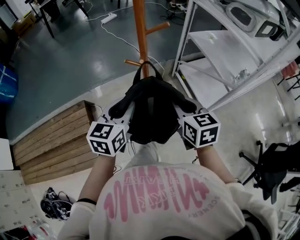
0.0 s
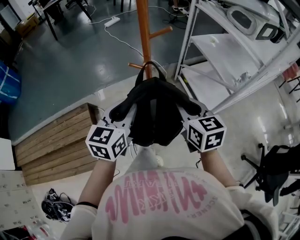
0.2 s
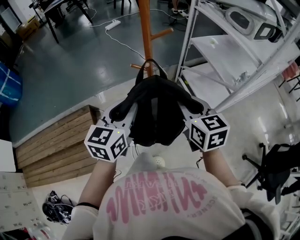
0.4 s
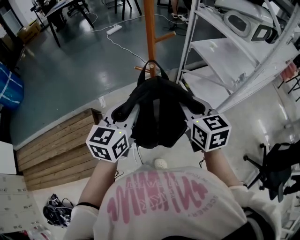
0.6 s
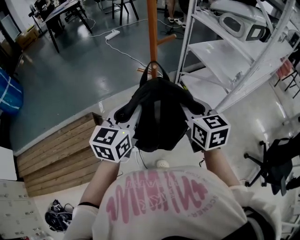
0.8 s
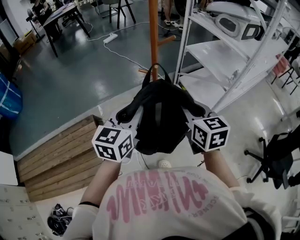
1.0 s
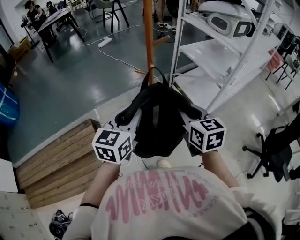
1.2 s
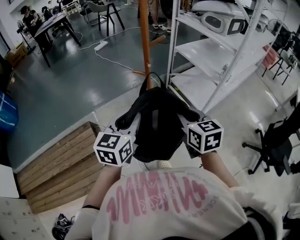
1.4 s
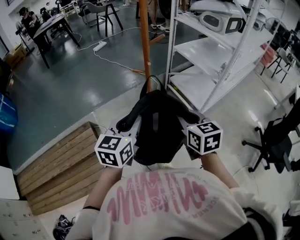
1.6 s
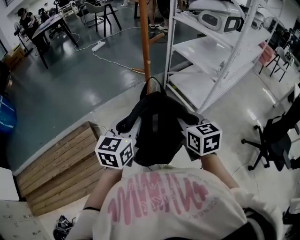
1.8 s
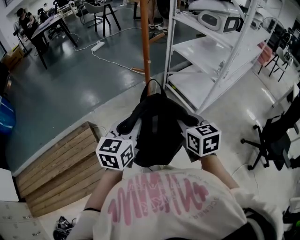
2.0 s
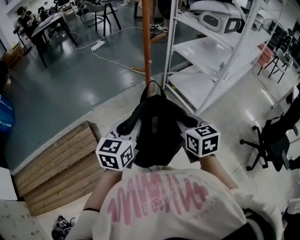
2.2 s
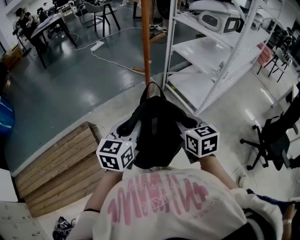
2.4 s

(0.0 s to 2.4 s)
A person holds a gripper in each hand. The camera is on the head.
0.0 s - 1.2 s: The two grippers go roughly 15 cm backward and upward.
1.2 s - 2.4 s: The two grippers go roughly 5 cm backward.

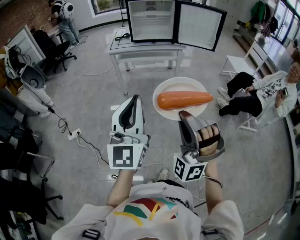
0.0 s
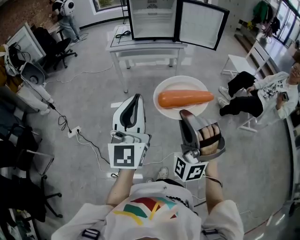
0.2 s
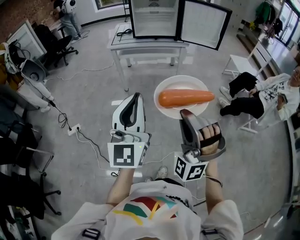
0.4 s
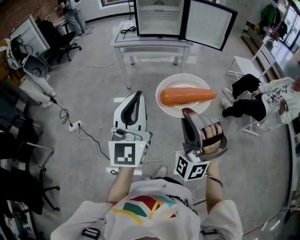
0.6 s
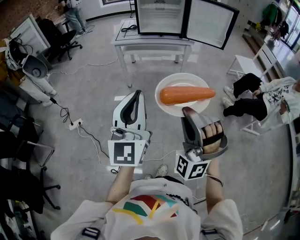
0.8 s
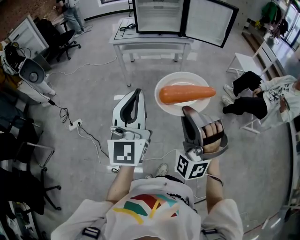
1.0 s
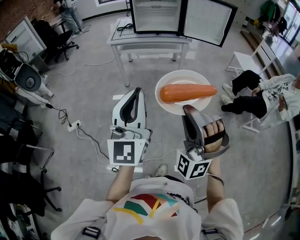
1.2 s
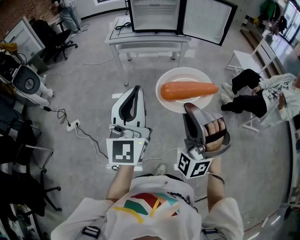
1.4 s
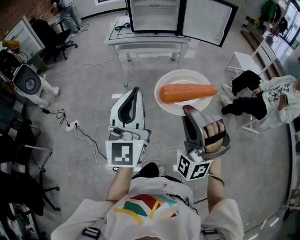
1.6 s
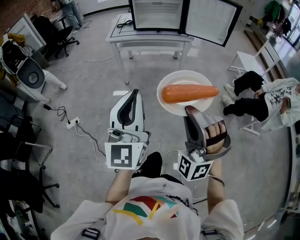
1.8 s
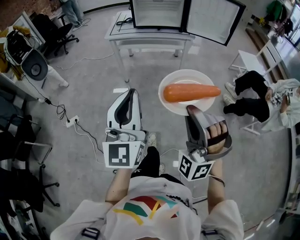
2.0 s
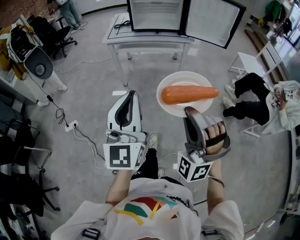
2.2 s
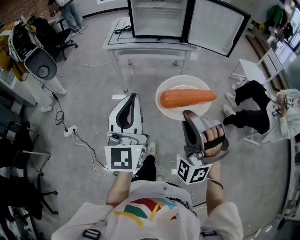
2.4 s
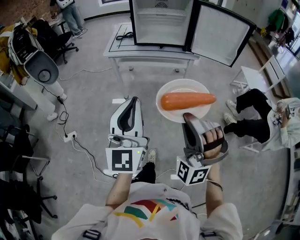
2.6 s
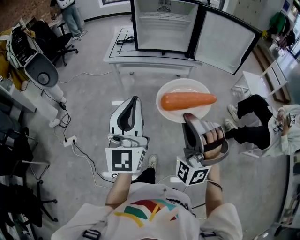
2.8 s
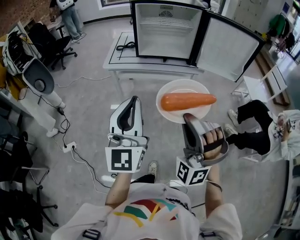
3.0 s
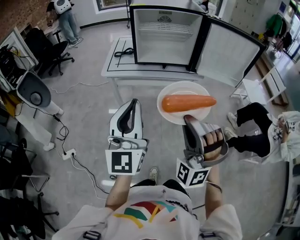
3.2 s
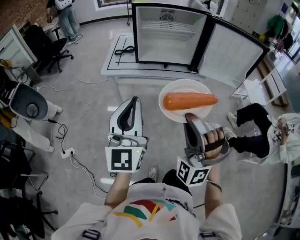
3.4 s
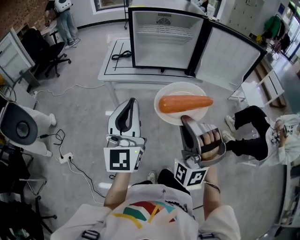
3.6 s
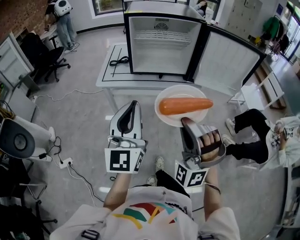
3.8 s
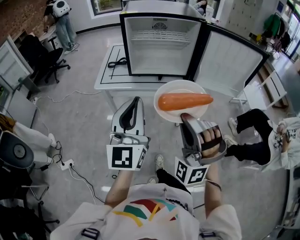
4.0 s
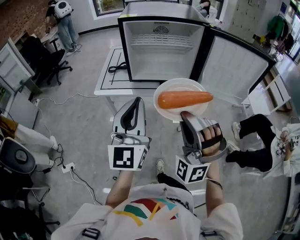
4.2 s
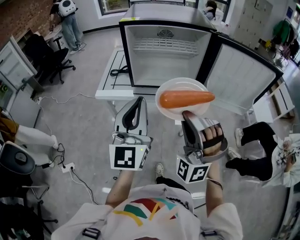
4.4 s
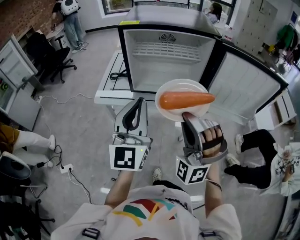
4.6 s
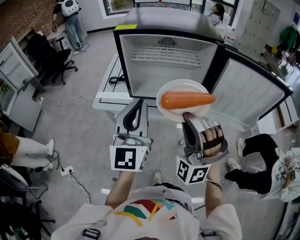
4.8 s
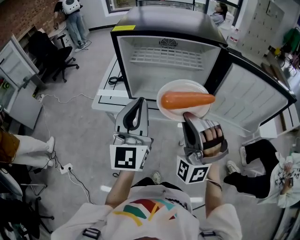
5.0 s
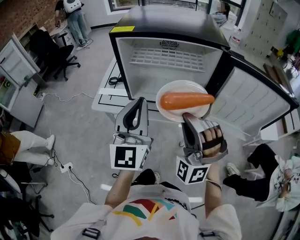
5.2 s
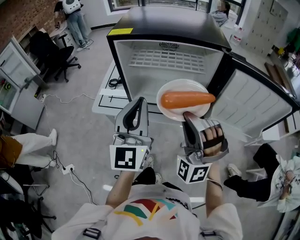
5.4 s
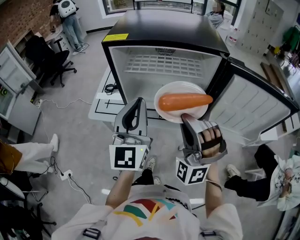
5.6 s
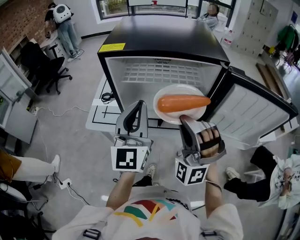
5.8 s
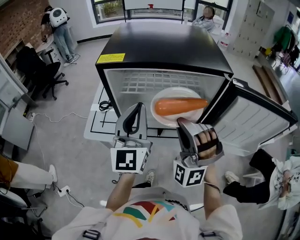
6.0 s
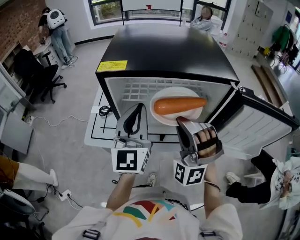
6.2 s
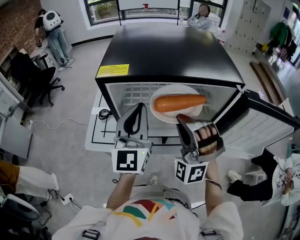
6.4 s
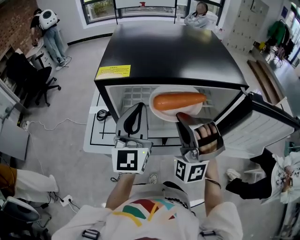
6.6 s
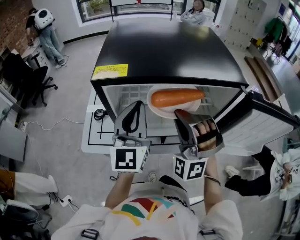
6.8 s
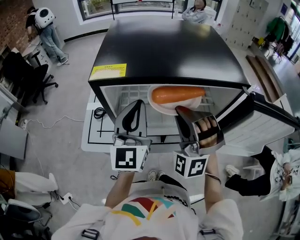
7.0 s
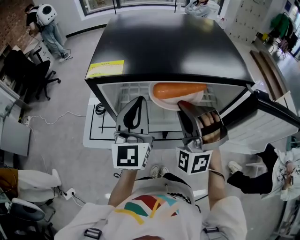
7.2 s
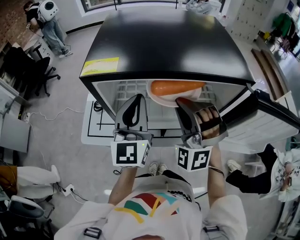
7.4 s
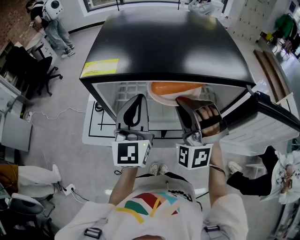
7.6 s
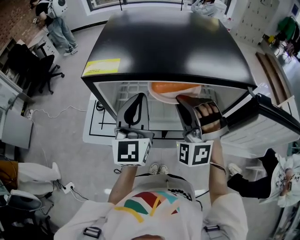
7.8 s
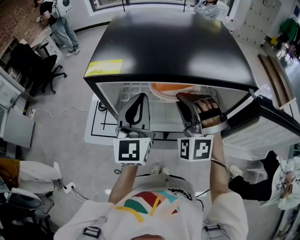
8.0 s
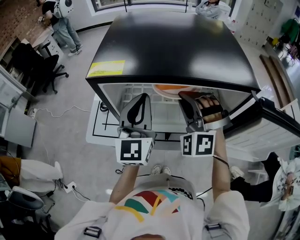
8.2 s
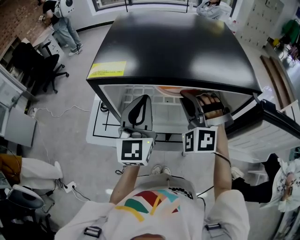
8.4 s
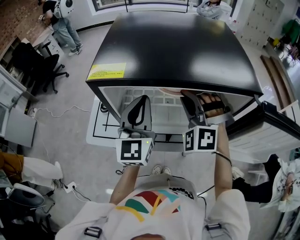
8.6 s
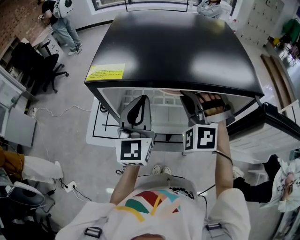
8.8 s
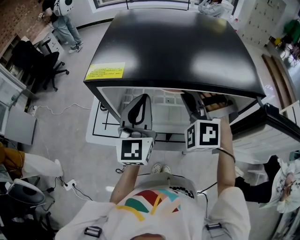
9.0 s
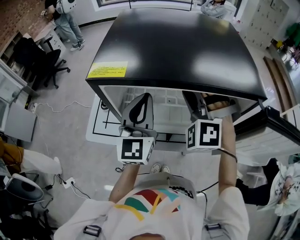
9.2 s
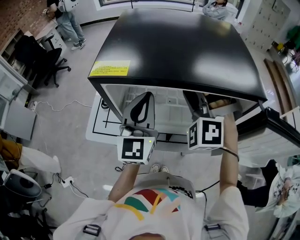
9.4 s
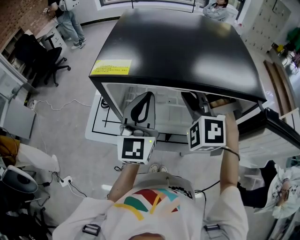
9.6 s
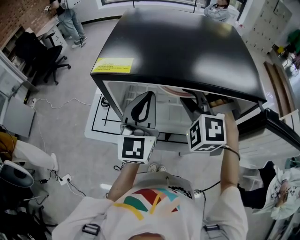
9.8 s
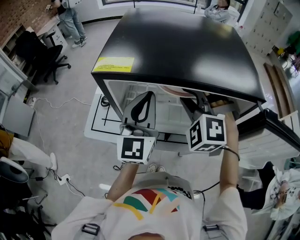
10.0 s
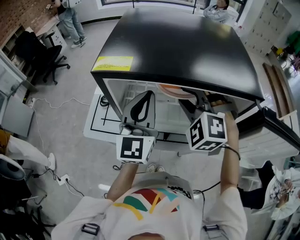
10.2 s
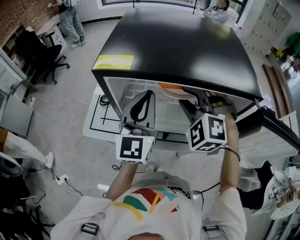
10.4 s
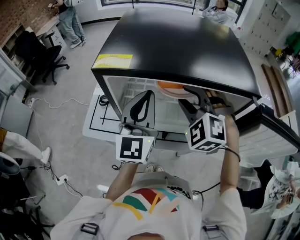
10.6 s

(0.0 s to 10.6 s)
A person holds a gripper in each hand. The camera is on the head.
0.0 s - 1.6 s: The left gripper ends up approximately 10 cm from where it was.
1.6 s - 3.0 s: The left gripper shifts by roughly 30 cm.
3.0 s - 4.6 s: The left gripper changes place by roughly 30 cm.
4.6 s - 6.0 s: The left gripper moves approximately 20 cm.
6.0 s - 7.6 s: The left gripper moves roughly 10 cm.

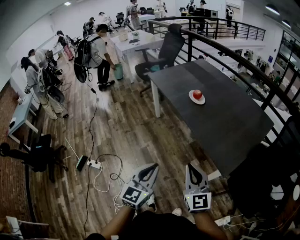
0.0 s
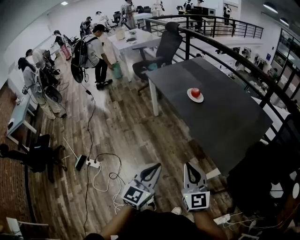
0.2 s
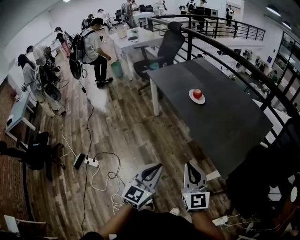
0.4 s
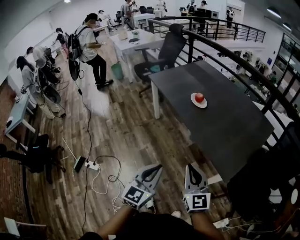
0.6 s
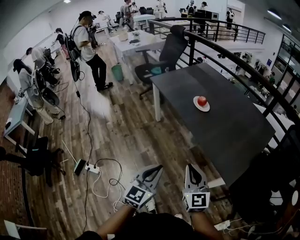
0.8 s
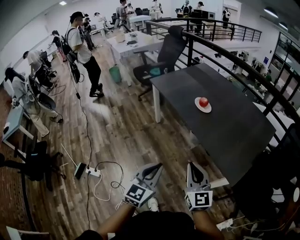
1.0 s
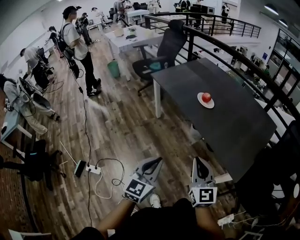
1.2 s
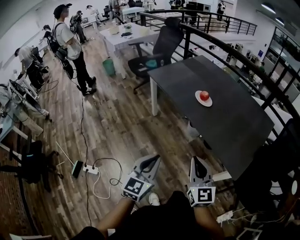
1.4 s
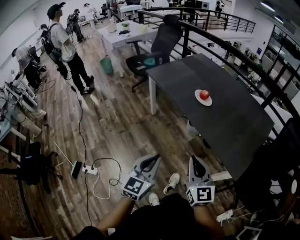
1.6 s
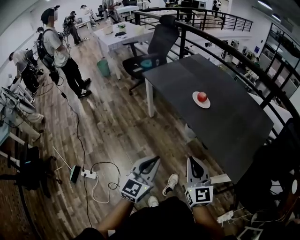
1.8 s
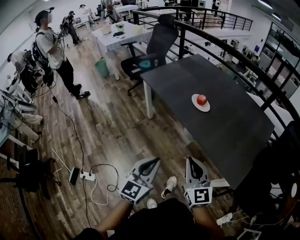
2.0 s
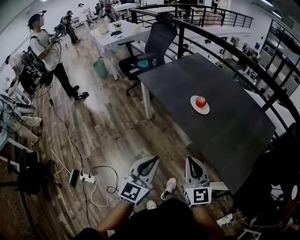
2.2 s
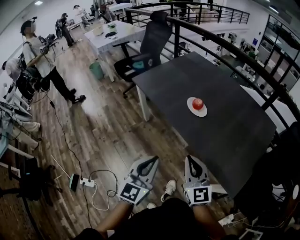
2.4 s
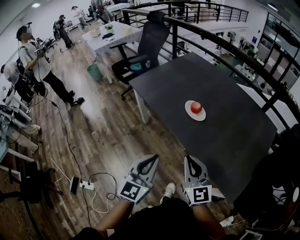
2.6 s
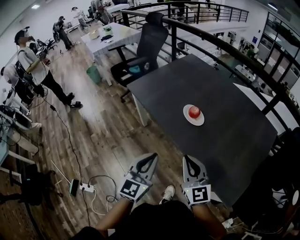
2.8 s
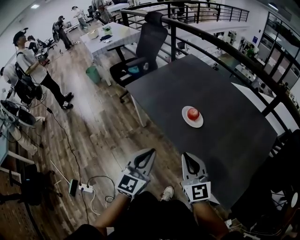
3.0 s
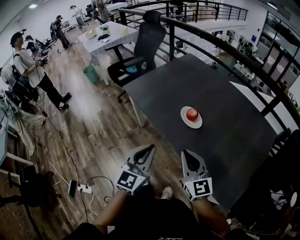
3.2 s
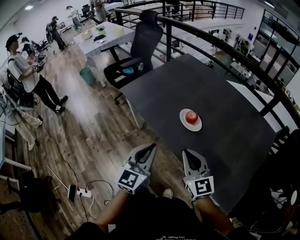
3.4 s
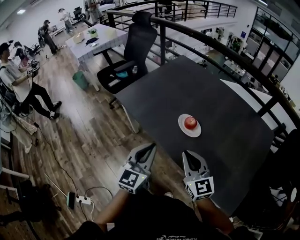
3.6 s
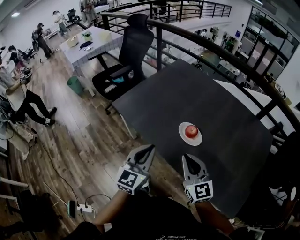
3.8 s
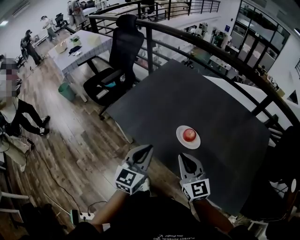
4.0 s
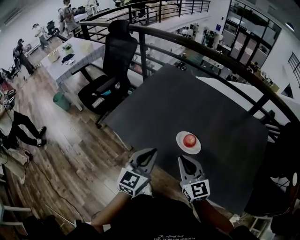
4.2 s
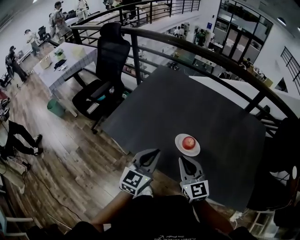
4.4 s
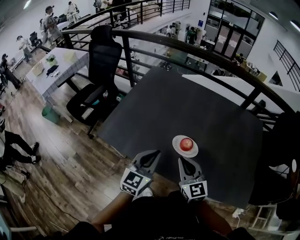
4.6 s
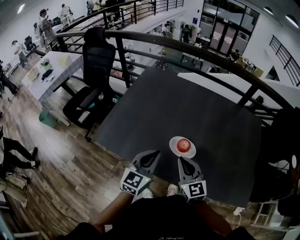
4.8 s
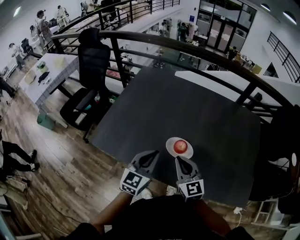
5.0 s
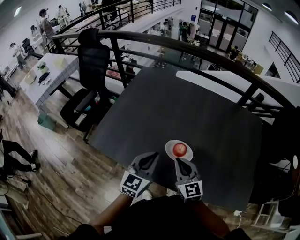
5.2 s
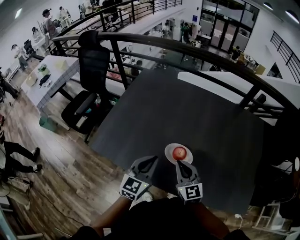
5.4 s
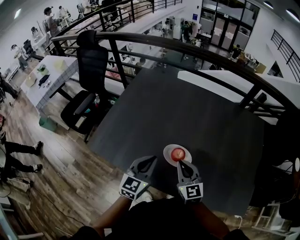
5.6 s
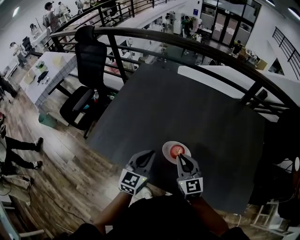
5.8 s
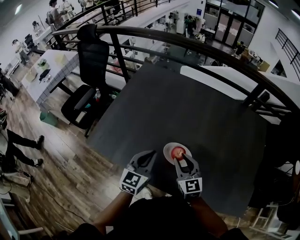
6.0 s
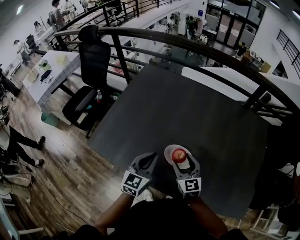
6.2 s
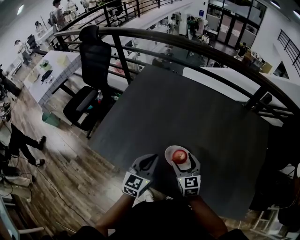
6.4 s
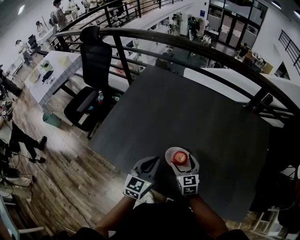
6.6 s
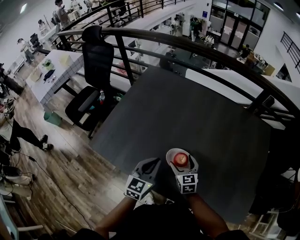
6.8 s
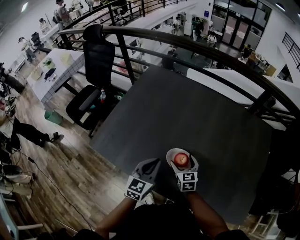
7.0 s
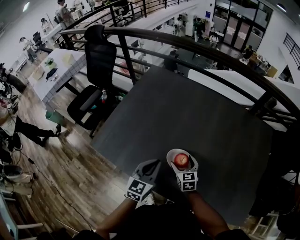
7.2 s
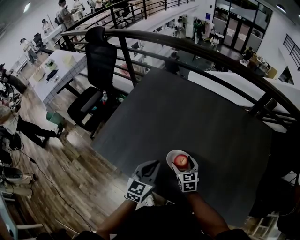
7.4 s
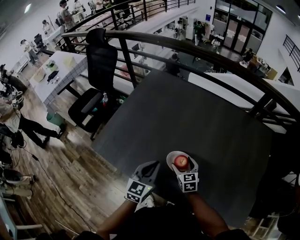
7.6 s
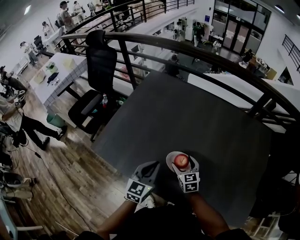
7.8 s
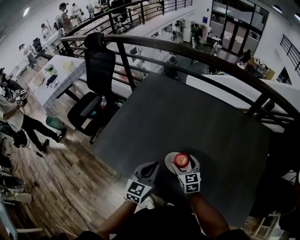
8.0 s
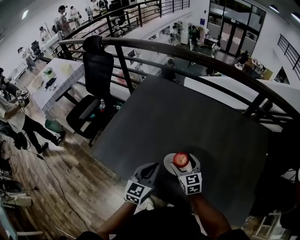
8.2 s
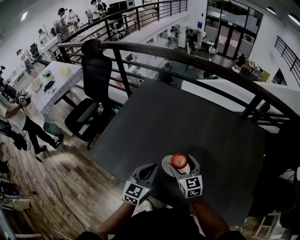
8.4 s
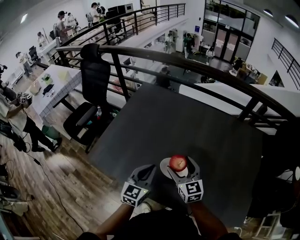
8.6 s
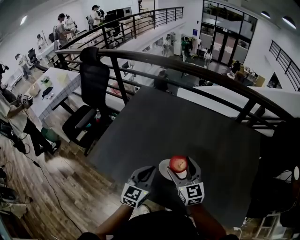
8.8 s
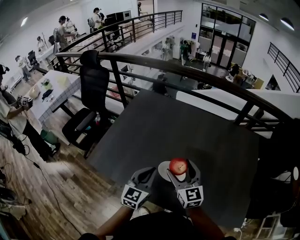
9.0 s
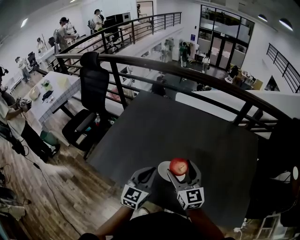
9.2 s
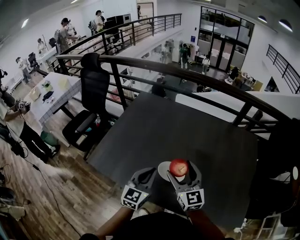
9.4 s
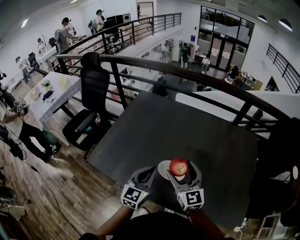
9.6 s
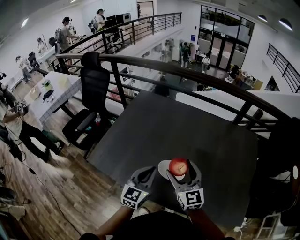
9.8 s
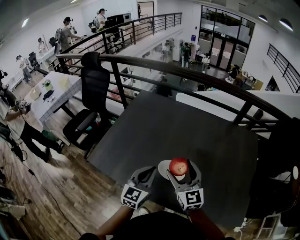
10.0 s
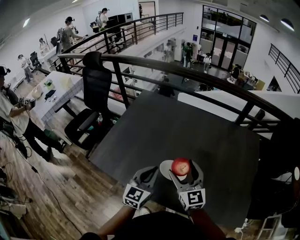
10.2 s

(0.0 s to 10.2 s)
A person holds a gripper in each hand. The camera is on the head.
0.0 s - 1.4 s: The grippers both shift to the left and forward by about 15 cm.
1.4 s - 3.0 s: The two grippers go approximately 25 cm forward.
3.0 s - 4.4 s: Both grippers move forward, some 25 cm. The left gripper rotates some 30 degrees.
4.4 s - 5.8 s: The right gripper moves forward, to the right and downward, roughly 15 cm; the left gripper is displaced forward and downward by approximately 10 cm.
5.8 s - 7.2 s: The right gripper shifts about 15 cm downward, rotates approximately 20 degrees, and opens.
7.2 s - 8.8 s: The left gripper is displaced upward by some 5 cm; the right gripper travels upward by some 20 cm, and turns by about 20 degrees.
8.8 s - 10.2 s: There are only small adjustments of the grippers.

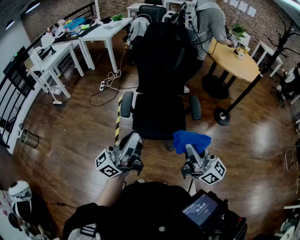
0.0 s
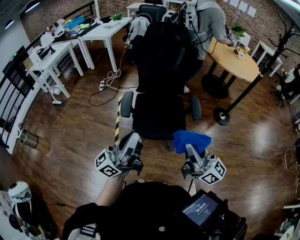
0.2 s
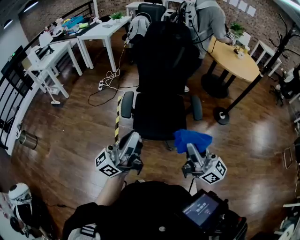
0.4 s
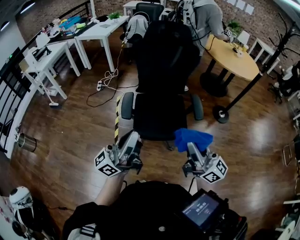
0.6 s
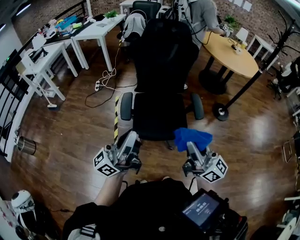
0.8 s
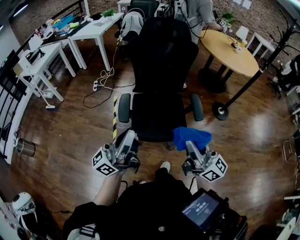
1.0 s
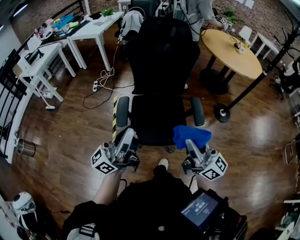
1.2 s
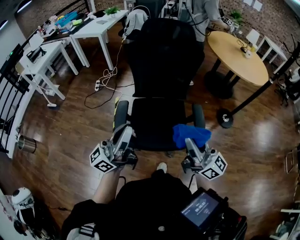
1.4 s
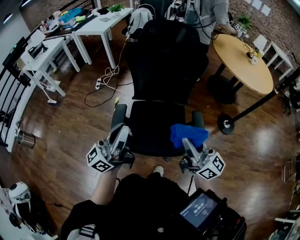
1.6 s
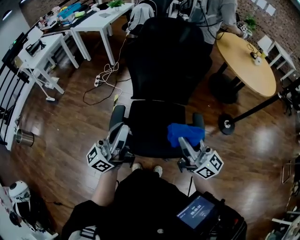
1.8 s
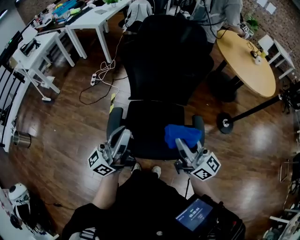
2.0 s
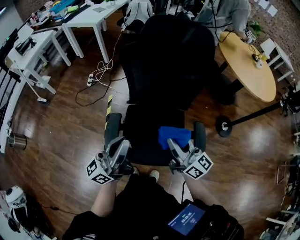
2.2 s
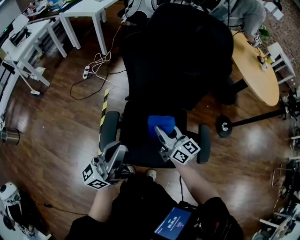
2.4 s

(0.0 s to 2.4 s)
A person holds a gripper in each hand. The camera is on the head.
0.0 s - 1.2 s: The grippers both shift forward by about 10 cm.
1.2 s - 2.4 s: The left gripper goes some 25 cm forward and downward; the right gripper travels forward and downward by about 40 cm, and changes its angle by approximately 30 degrees.
